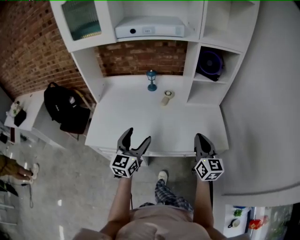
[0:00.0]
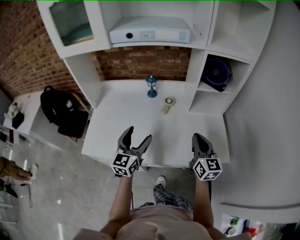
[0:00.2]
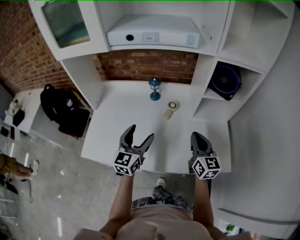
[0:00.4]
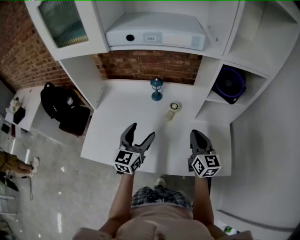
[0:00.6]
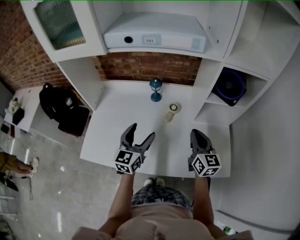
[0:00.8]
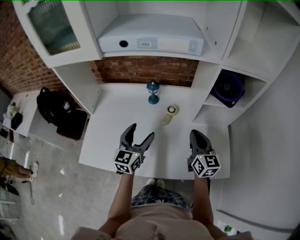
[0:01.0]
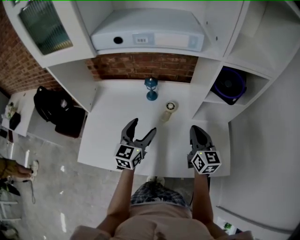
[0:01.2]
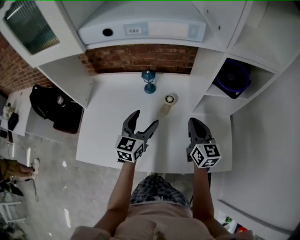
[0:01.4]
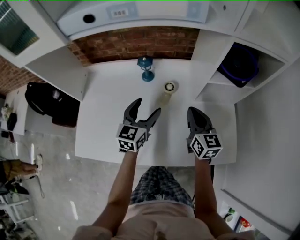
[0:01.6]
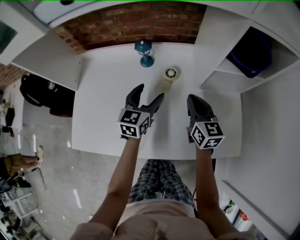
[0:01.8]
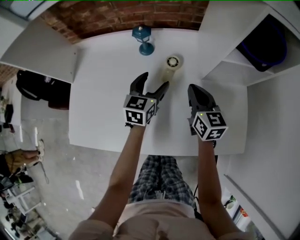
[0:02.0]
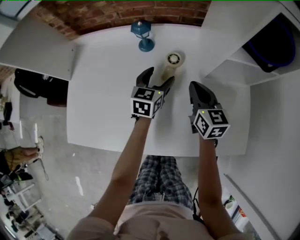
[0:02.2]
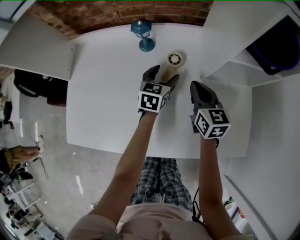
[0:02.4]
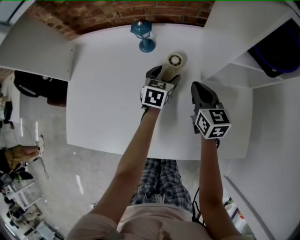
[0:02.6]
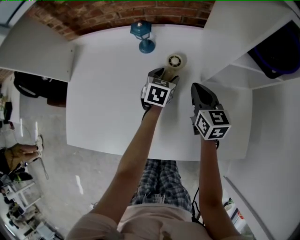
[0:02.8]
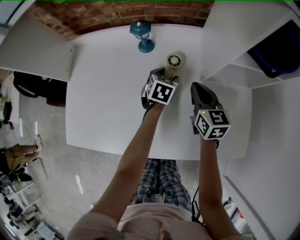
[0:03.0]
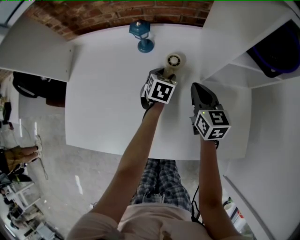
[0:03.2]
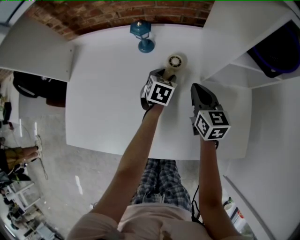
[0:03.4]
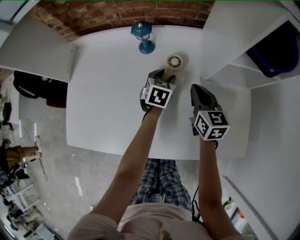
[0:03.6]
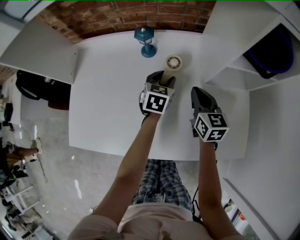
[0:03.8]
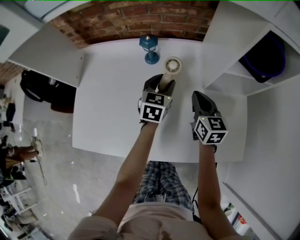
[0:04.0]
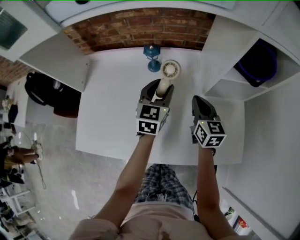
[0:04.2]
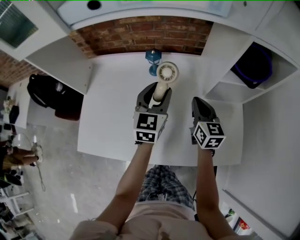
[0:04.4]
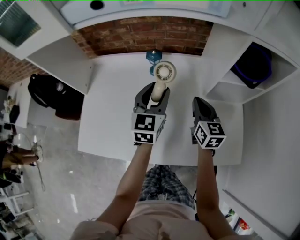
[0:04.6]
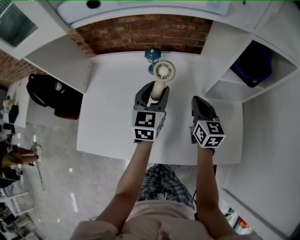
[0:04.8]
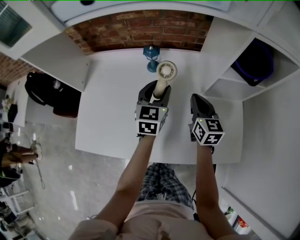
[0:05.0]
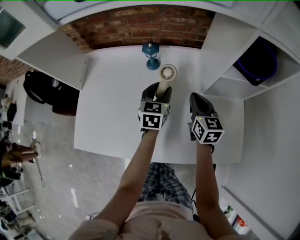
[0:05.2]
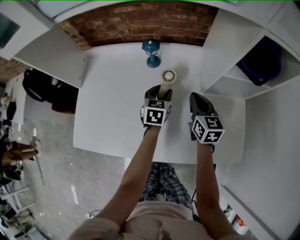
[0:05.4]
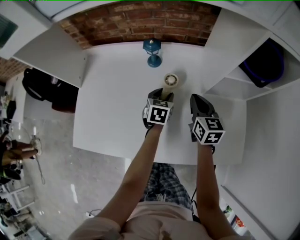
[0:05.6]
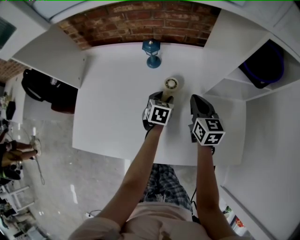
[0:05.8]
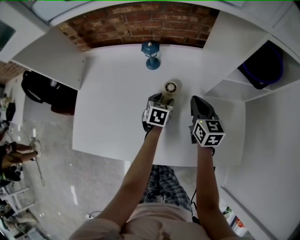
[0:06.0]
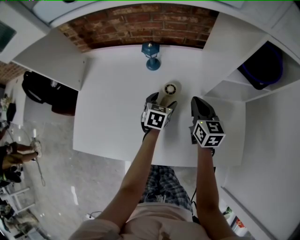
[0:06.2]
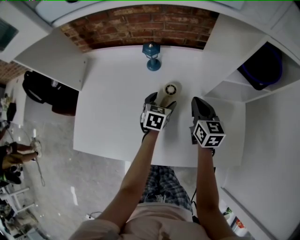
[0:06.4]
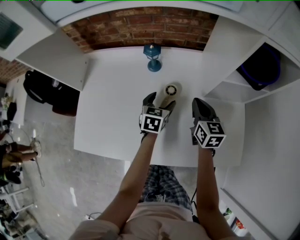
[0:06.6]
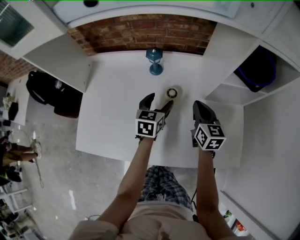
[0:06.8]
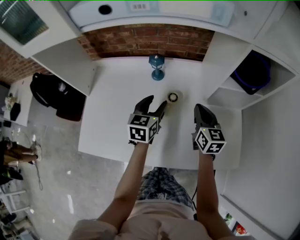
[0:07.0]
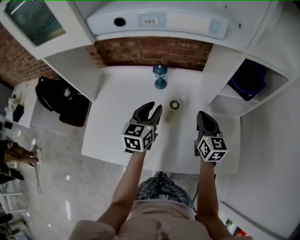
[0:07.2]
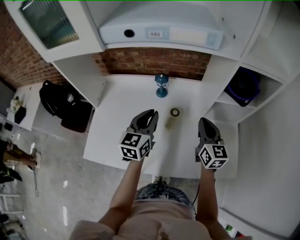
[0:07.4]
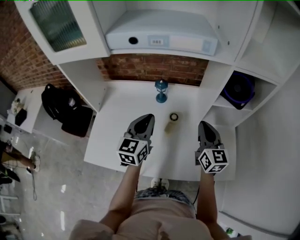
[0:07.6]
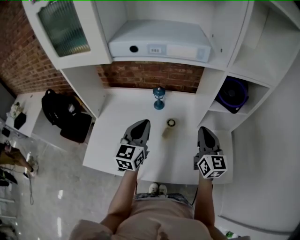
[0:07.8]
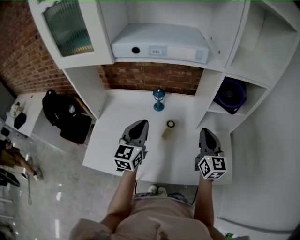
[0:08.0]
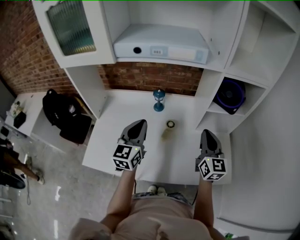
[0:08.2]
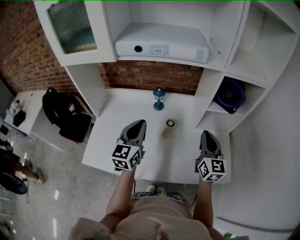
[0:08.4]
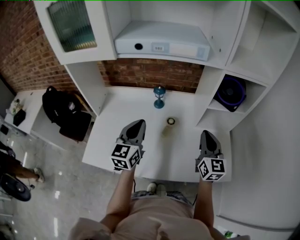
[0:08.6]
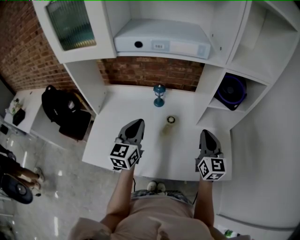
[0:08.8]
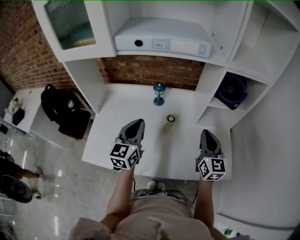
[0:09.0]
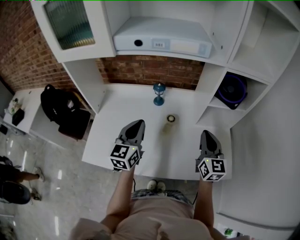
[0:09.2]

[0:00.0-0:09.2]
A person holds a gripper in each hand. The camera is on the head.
0:00.0 to 0:01.6: Both grippers travel together forward, approximately 30 cm.
0:01.6 to 0:03.0: The right gripper heads downward and forward, covering some 15 cm. Meanwhile the left gripper is displaced downward and forward by approximately 25 cm, and tilts its fingers about 30 degrees downward.
0:03.0 to 0:04.6: The left gripper heads upward, covering about 25 cm, and tilts its fingers roughly 40 degrees upward. Meanwhile the right gripper is displaced upward by roughly 10 cm.
0:04.6 to 0:06.2: The right gripper shifts approximately 5 cm downward. The left gripper goes roughly 20 cm downward, points its fingers approximately 30 degrees further downward, and opens up.
0:06.2 to 0:07.6: The left gripper moves upward, some 30 cm, tips its fingers upward by approximately 40 degrees, and closes its fingers; the right gripper is displaced upward and backward by approximately 20 cm, and swivels roughly 20 degrees.
0:07.6 to 0:09.2: Both grippers move backward, approximately 5 cm.

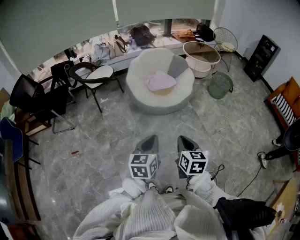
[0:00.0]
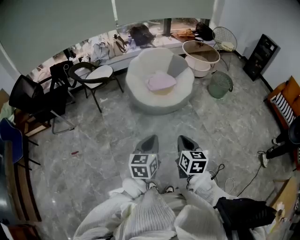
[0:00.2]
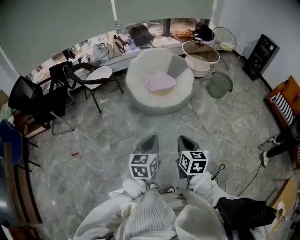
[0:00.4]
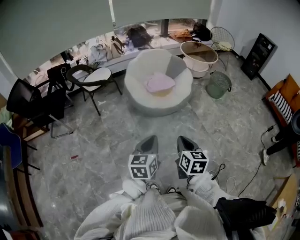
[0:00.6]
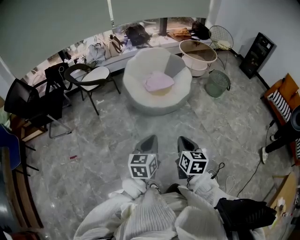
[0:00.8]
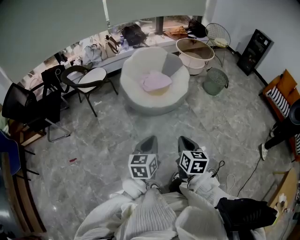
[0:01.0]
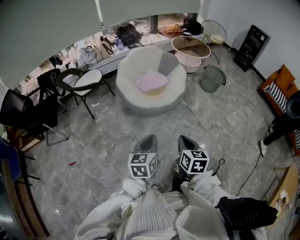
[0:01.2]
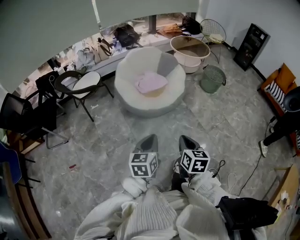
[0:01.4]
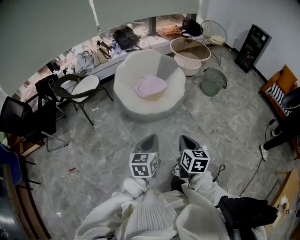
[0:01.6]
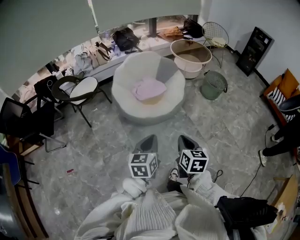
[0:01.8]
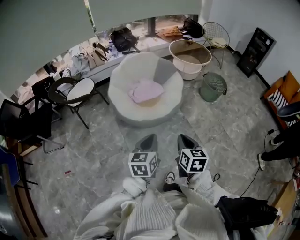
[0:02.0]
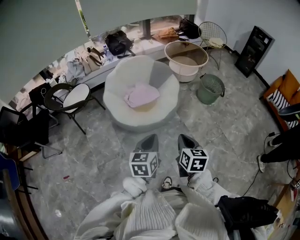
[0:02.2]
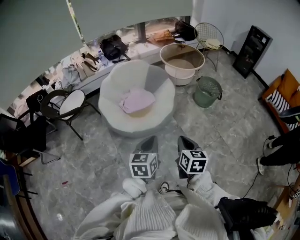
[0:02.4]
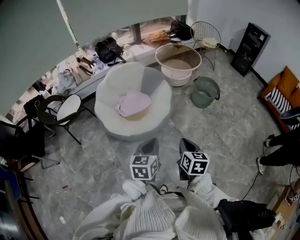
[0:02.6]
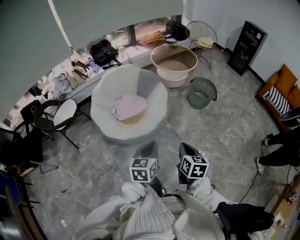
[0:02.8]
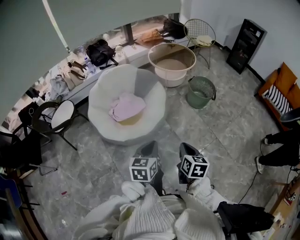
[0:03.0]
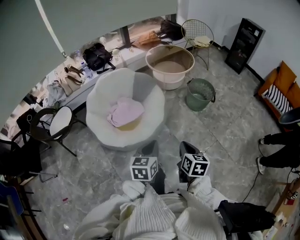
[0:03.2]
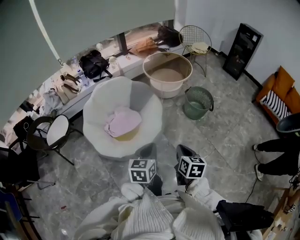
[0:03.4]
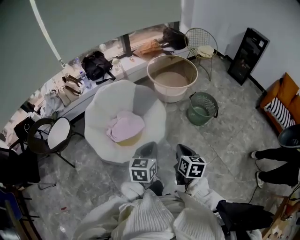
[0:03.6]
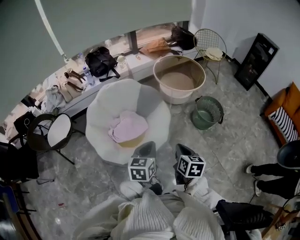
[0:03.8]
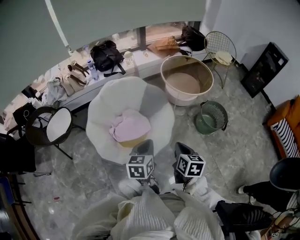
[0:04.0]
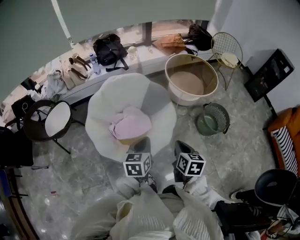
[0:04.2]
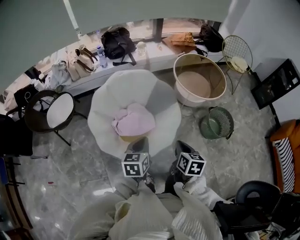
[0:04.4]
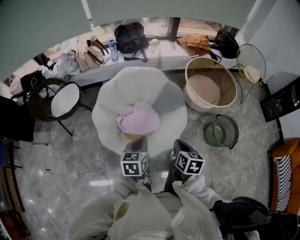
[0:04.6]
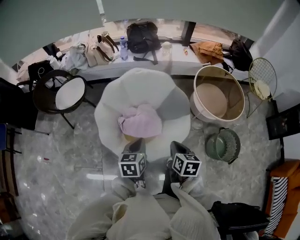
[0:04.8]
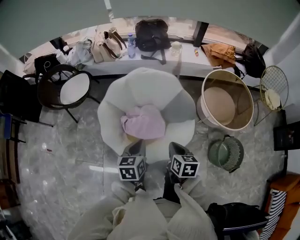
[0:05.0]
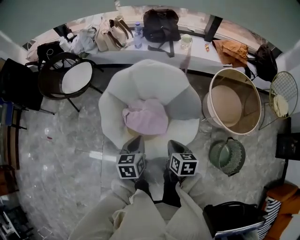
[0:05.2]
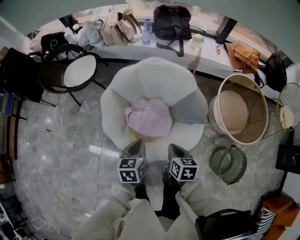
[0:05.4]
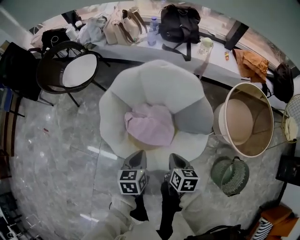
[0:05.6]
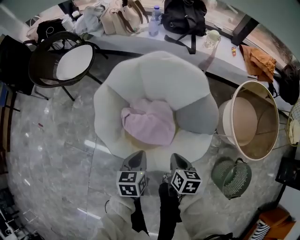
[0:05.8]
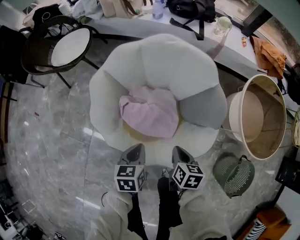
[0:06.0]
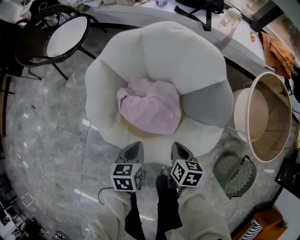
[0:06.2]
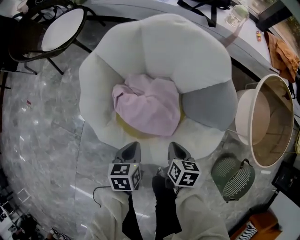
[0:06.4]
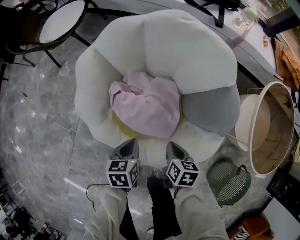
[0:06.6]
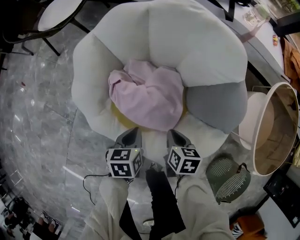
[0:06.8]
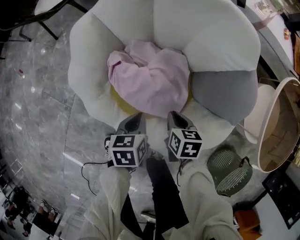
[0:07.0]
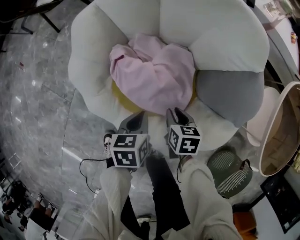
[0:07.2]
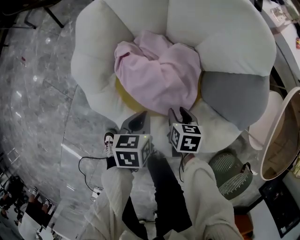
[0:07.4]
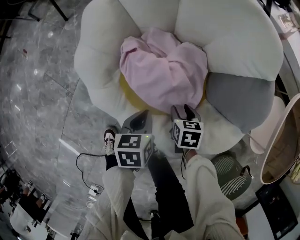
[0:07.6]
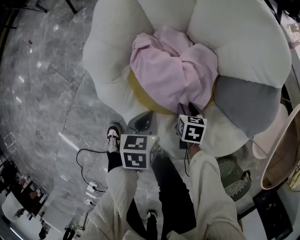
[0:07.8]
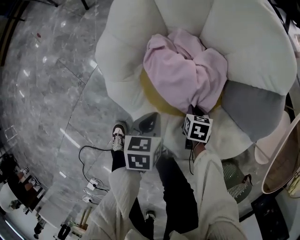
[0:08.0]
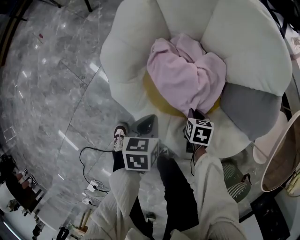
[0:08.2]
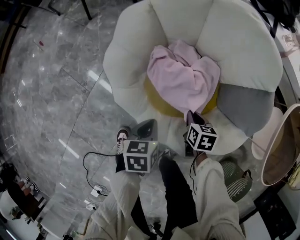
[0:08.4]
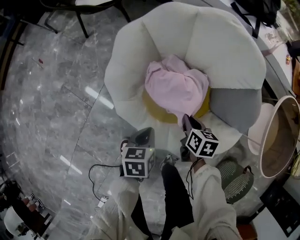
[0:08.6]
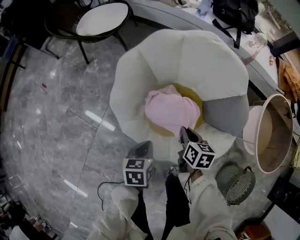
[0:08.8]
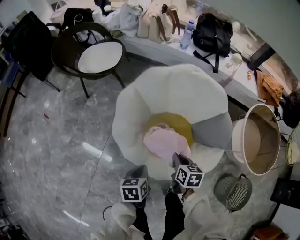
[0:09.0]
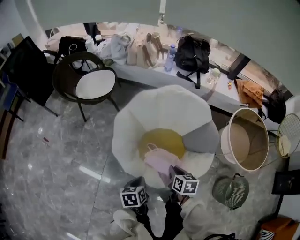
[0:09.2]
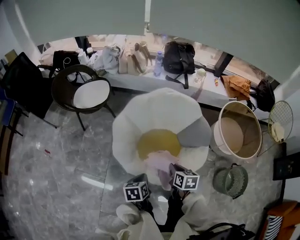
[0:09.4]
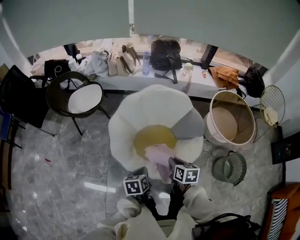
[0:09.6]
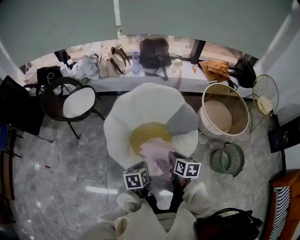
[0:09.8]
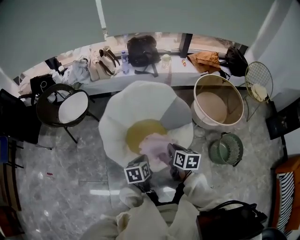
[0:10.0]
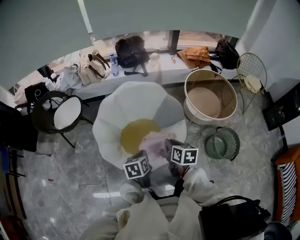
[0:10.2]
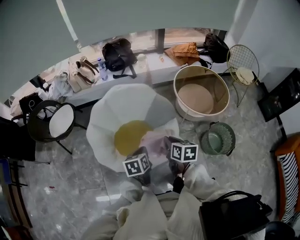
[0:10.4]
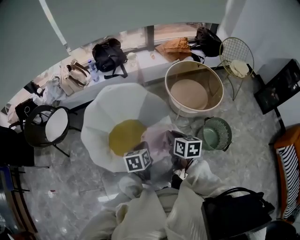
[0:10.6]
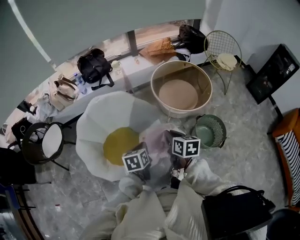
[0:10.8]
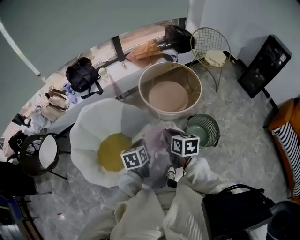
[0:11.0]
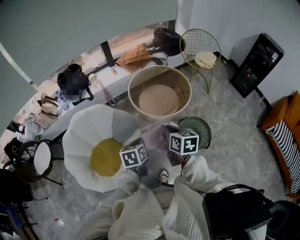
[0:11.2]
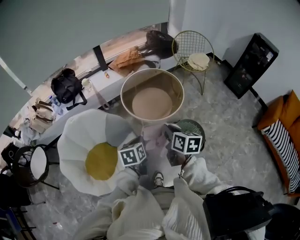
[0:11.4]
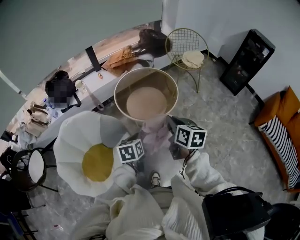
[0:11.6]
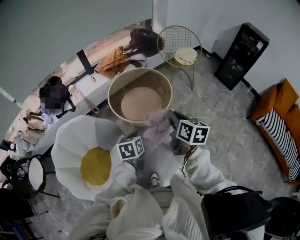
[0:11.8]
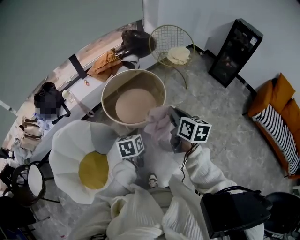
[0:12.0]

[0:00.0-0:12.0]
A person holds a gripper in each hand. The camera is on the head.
0:00.0 to 0:01.6: The two grippers go some 10 cm forward.
0:01.6 to 0:03.0: Both grippers move forward and to the right, roughly 35 cm.
0:03.0 to 0:04.4: Both grippers move forward, some 35 cm.
0:04.4 to 0:06.0: Both grippers travel together downward, approximately 30 cm. The left gripper swivels roughly 40 degrees. The right gripper changes its angle by about 40 degrees.
0:06.0 to 0:07.6: The two grippers go some 25 cm downward. The right gripper changes its angle by approximately 30 degrees, and opens.
0:07.6 to 0:09.0: The right gripper travels upward by some 30 cm, rotates some 20 degrees, and closes up. The left gripper goes about 25 cm upward and to the left.
0:09.0 to 0:10.4: The grippers both shift upward and to the right by approximately 30 cm. The left gripper rotates roughly 30 degrees, while the right gripper changes its angle by approximately 30 degrees.
0:10.4 to 0:12.0: The pair of grippers is taken some 50 cm. The left gripper turns by some 30 degrees; the right gripper turns by approximately 40 degrees.

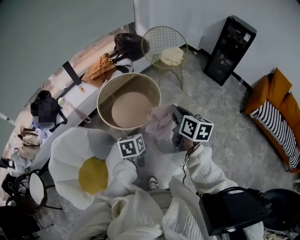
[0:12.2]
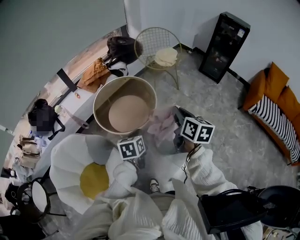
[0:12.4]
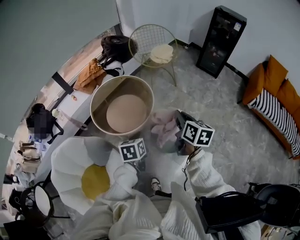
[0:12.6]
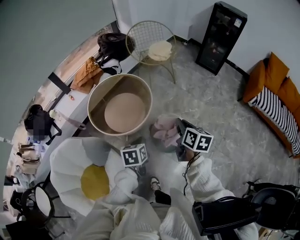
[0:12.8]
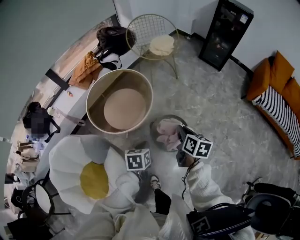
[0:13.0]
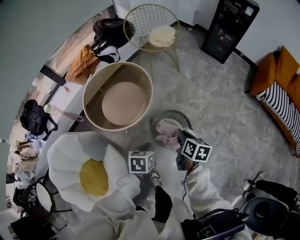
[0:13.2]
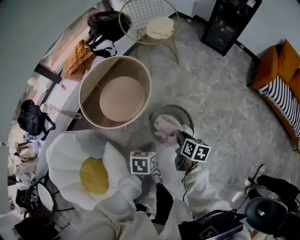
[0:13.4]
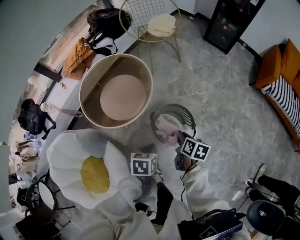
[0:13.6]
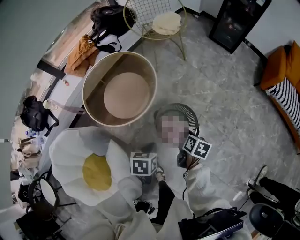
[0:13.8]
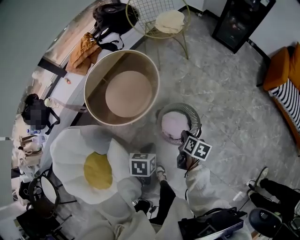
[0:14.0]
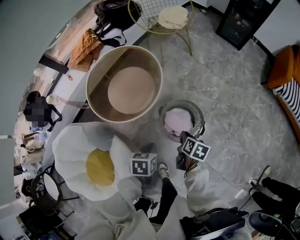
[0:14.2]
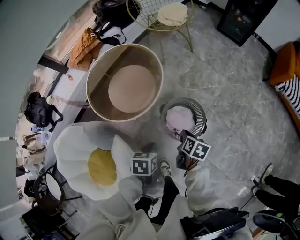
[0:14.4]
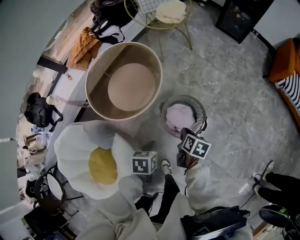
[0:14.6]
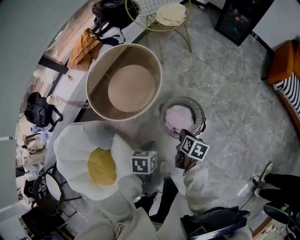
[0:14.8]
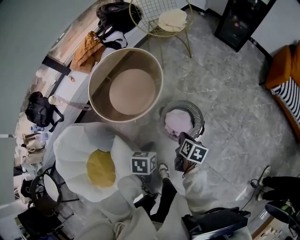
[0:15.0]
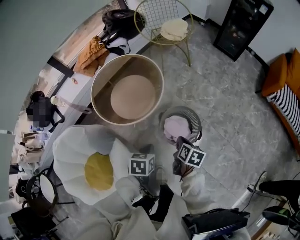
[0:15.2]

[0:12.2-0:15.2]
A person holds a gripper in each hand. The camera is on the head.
0:12.2 to 0:13.8: The left gripper goes roughly 20 cm downward and to the right, and swivels some 30 degrees; the right gripper is displaced downward and to the right by roughly 35 cm, and rotates some 40 degrees.
0:13.8 to 0:15.2: The left gripper shifts by about 5 cm. The right gripper goes roughly 5 cm backward.
